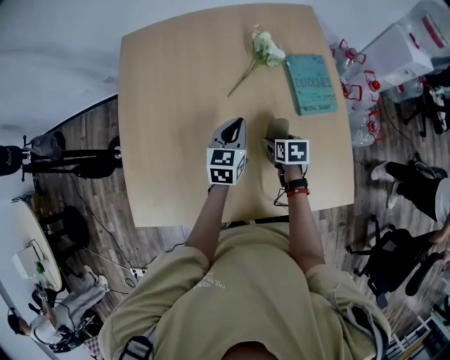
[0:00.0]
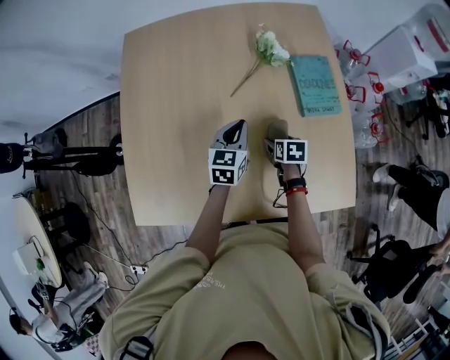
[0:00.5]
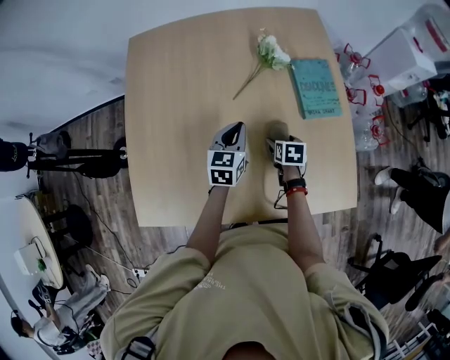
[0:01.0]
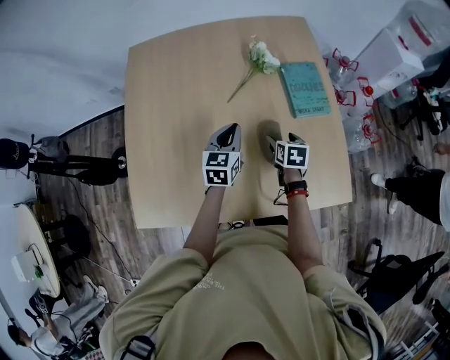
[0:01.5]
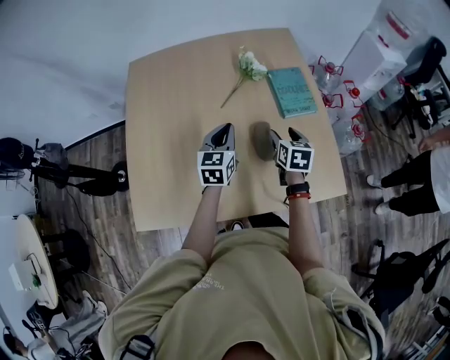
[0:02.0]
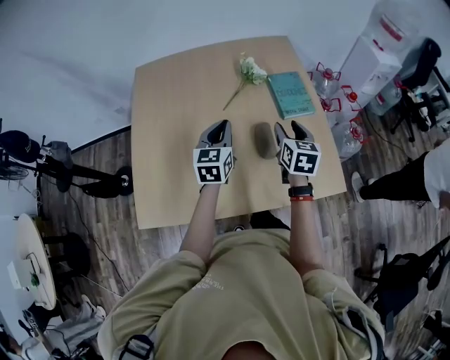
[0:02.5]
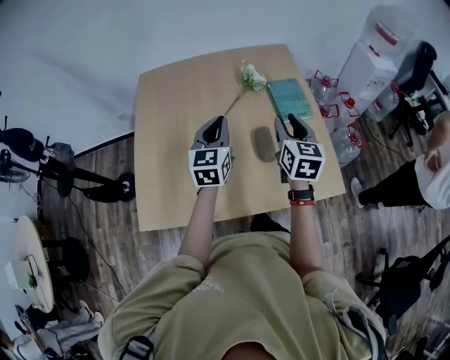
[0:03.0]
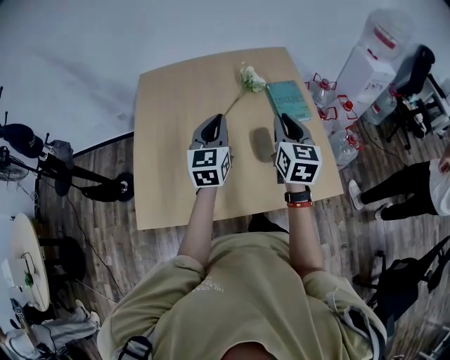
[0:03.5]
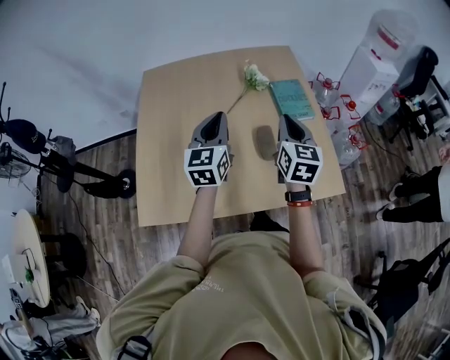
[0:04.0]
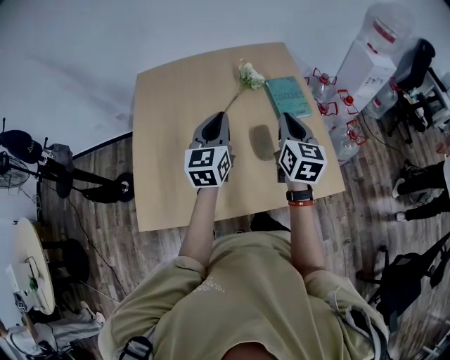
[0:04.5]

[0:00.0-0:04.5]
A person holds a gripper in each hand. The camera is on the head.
0.0 to 2.0 s: The right gripper shifts approximately 15 cm upward and backward, and turns by some 30 degrees. The left gripper goes roughly 10 cm backward and upward.
2.0 to 4.5 s: Both grippers move upward and backward, roughly 15 cm. The right gripper turns by some 30 degrees, and closes.

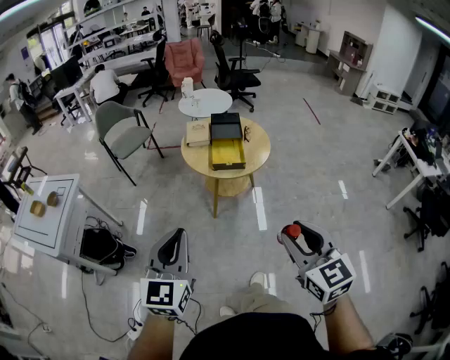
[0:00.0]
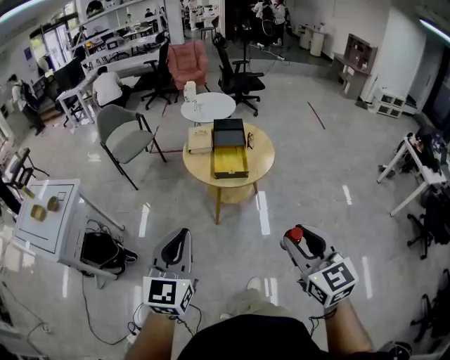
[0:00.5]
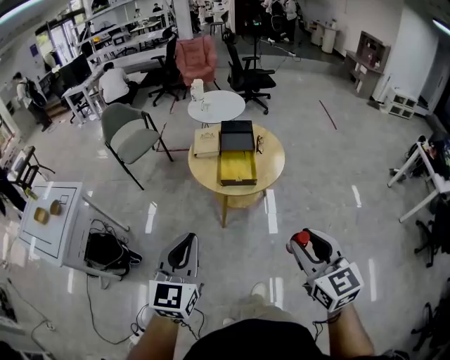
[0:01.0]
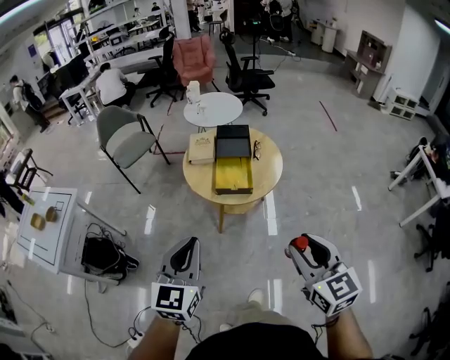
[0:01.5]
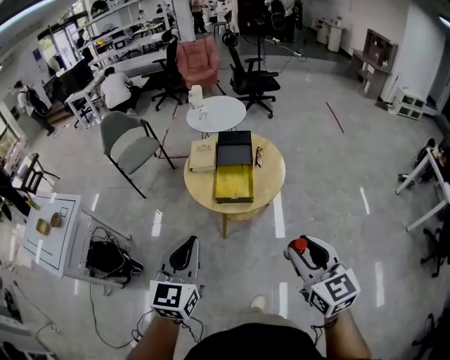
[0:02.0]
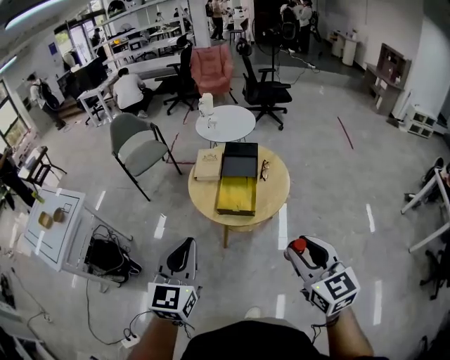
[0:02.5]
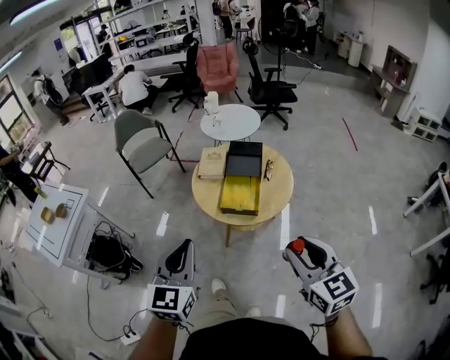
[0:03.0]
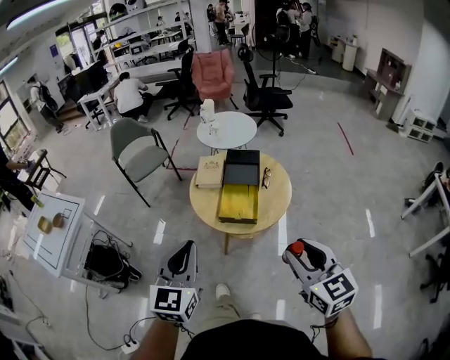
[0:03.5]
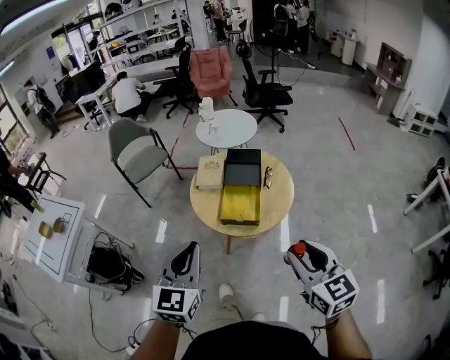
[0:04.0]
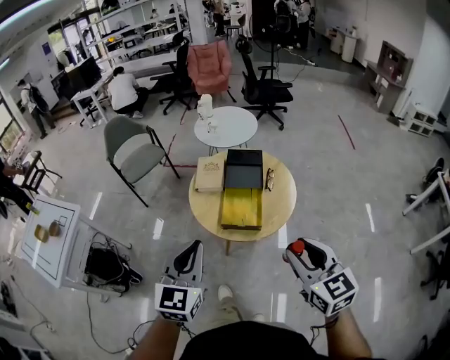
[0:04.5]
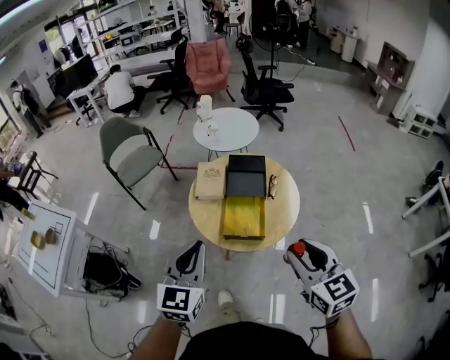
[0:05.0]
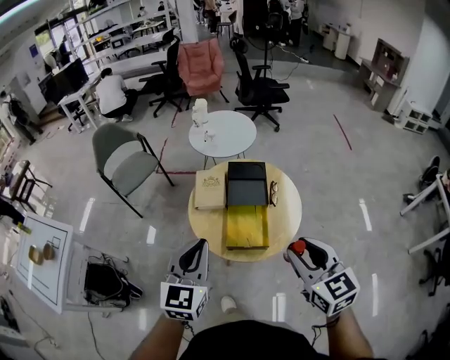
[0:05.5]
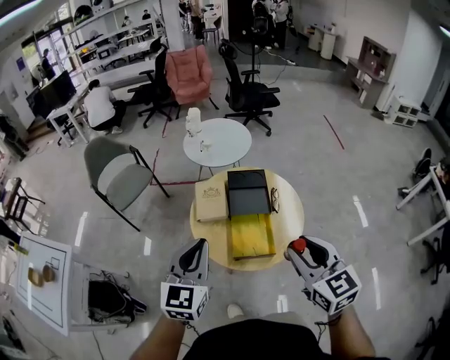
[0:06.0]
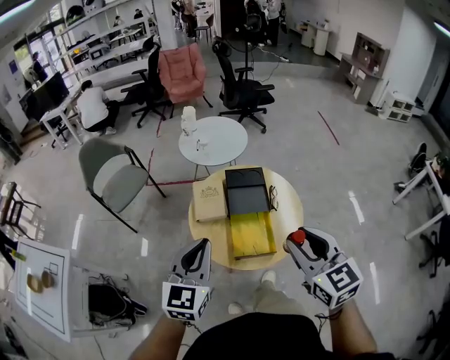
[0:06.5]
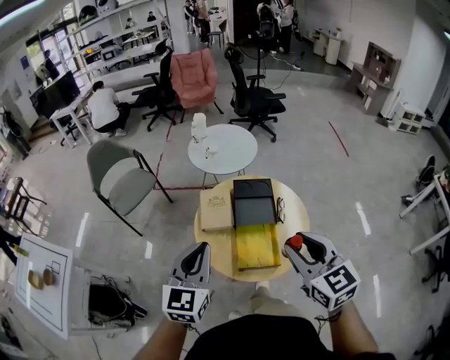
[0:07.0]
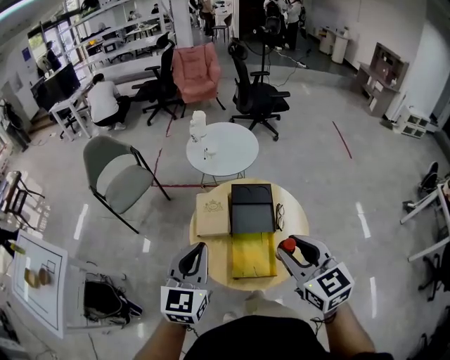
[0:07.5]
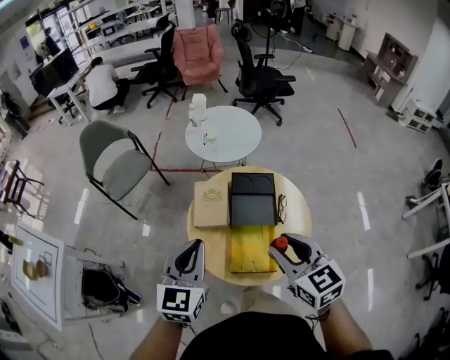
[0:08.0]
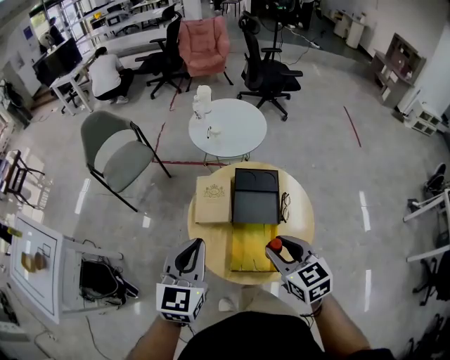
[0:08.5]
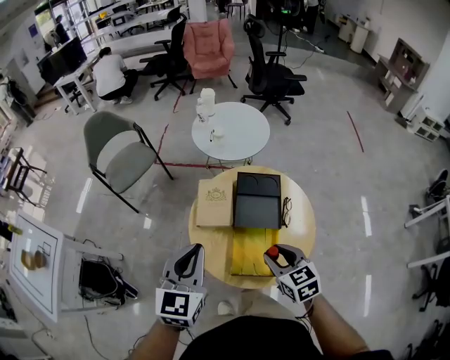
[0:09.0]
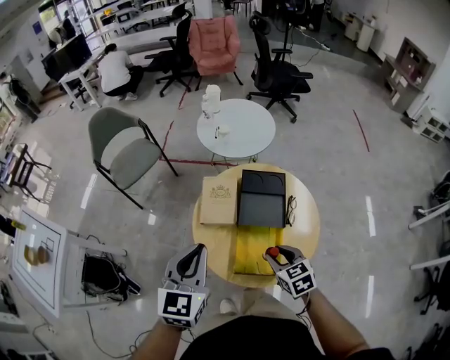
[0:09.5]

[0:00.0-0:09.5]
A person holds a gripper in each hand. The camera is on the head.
0.0 to 2.0 s: Both grippers travel together forward and to the right, about 25 cm.
2.0 to 4.0 s: The grippers both shift forward by some 10 cm.
4.0 to 5.5 s: The grippers both shift forward by about 20 cm.
5.5 to 7.5 s: The two grippers go roughly 15 cm forward.
7.5 to 9.5 s: The left gripper is displaced downward by approximately 5 cm. The right gripper goes some 25 cm downward, and changes its angle by about 20 degrees.

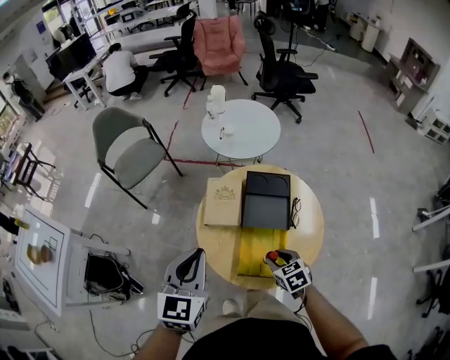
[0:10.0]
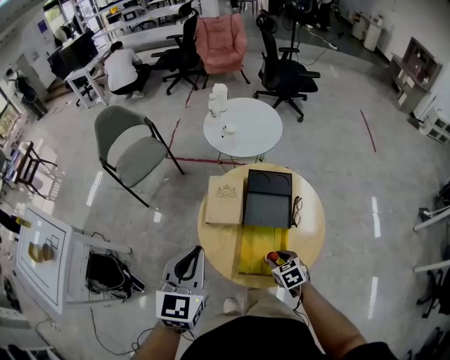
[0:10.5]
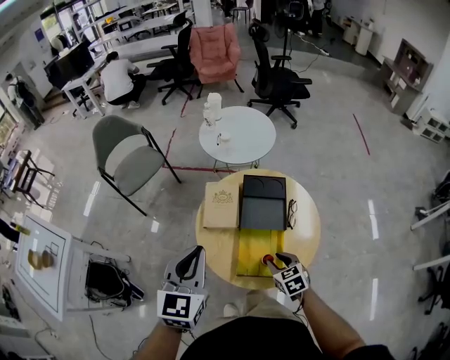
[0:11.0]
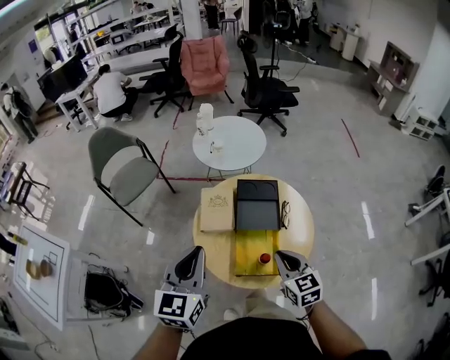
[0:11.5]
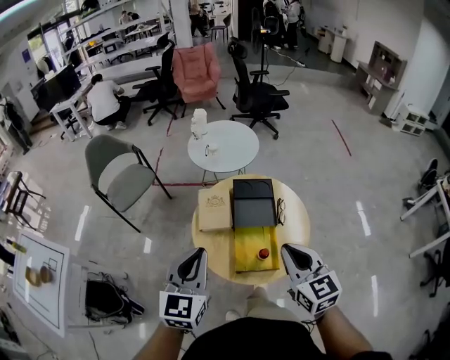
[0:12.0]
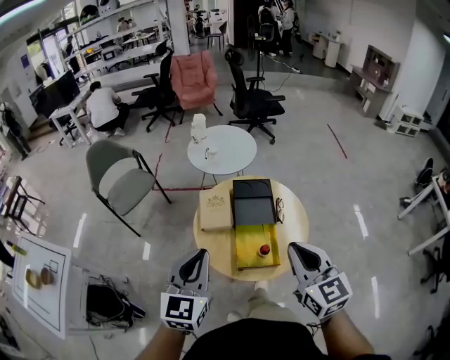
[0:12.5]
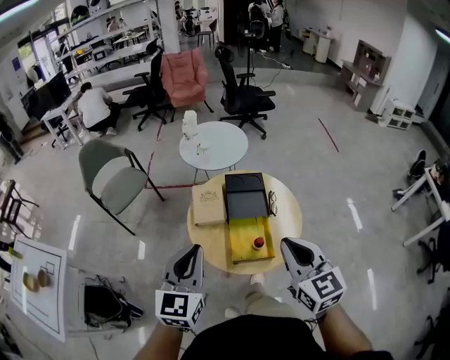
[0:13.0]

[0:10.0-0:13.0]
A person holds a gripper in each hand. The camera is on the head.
10.0 to 11.5 s: The right gripper moves upward, some 15 cm, turns by some 30 degrees, and closes up. Meanwhile the left gripper moves some 5 cm.
11.5 to 13.0 s: The right gripper travels upward and backward by approximately 20 cm, while the left gripper travels backward by approximately 10 cm.

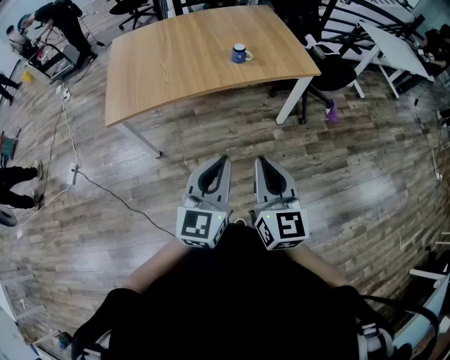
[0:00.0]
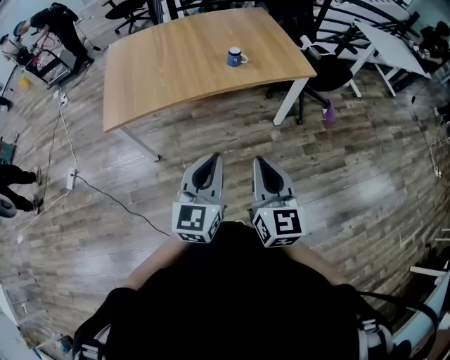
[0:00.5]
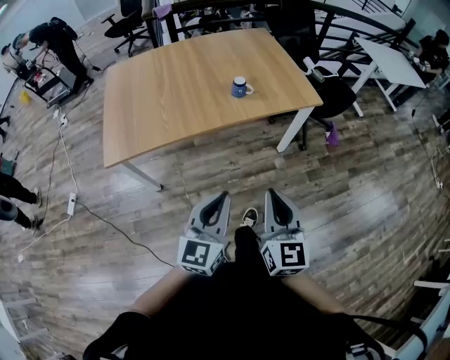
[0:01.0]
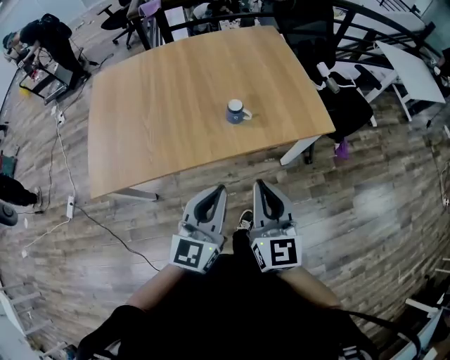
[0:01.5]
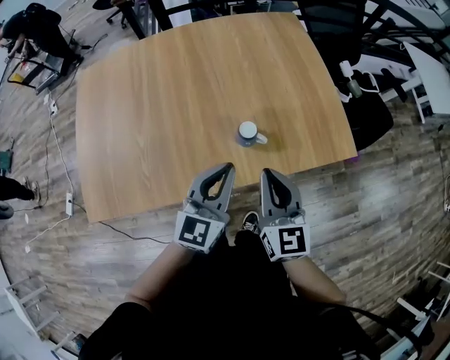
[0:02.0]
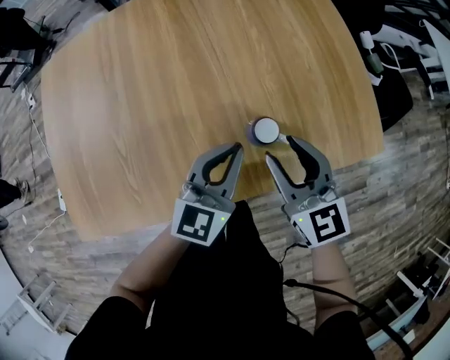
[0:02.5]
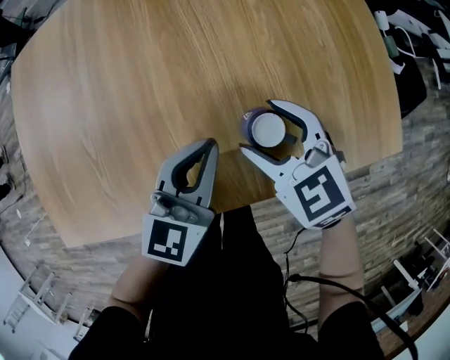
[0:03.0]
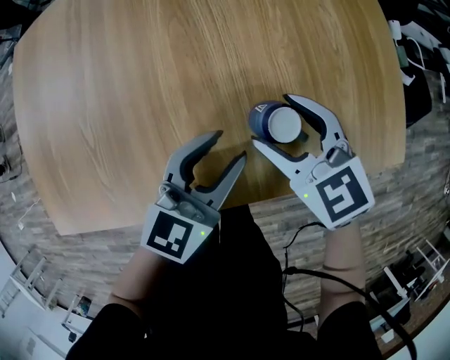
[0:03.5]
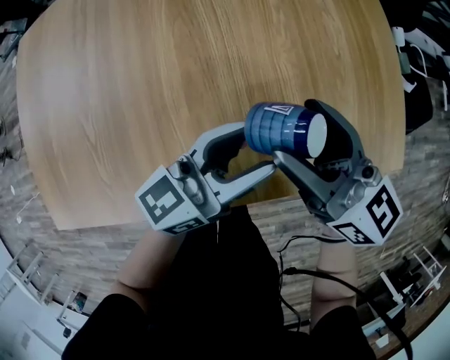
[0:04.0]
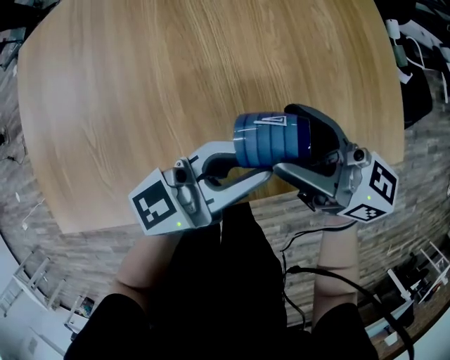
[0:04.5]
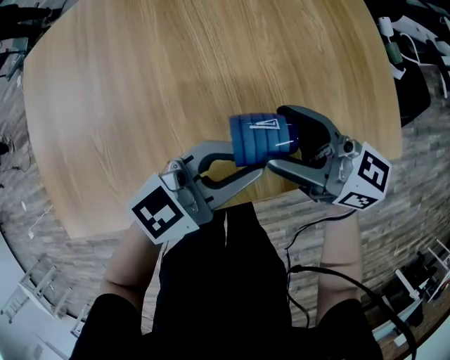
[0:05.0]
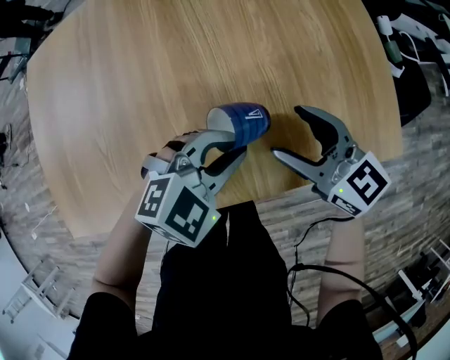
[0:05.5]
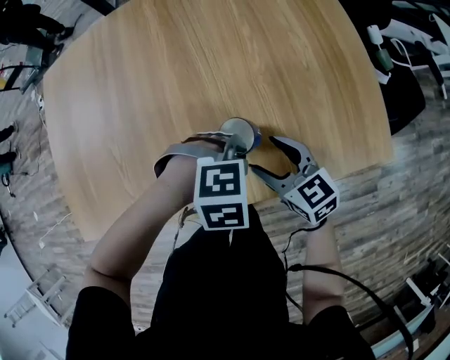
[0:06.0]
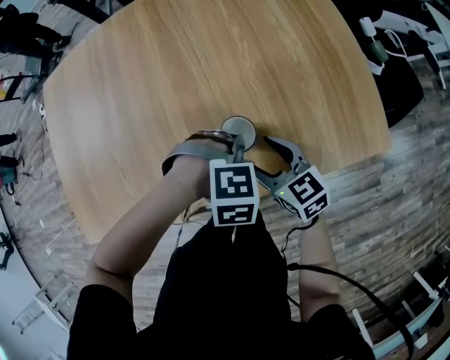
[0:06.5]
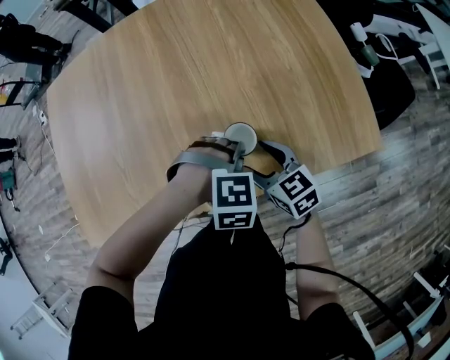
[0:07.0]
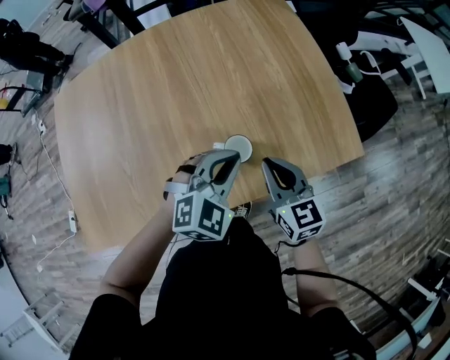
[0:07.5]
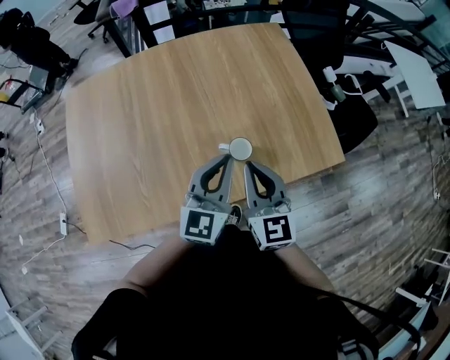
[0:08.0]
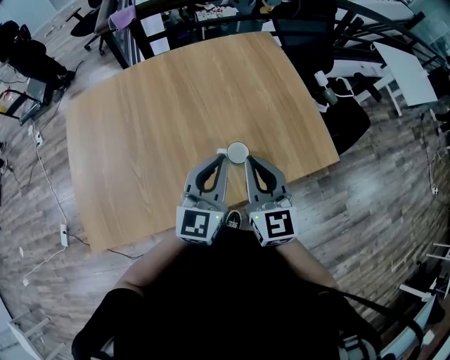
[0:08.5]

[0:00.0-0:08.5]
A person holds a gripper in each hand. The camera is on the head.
0.0 to 2.0 s: The two grippers travel together, forward, approximately 60 cm.
2.0 to 4.0 s: The left gripper heads downward and forward, covering approximately 20 cm, turns by approximately 40 degrees, and opens its fingers. Meanwhile the right gripper shifts about 20 cm forward and downward, rotates some 30 degrees, and opens its fingers.
4.0 to 6.5 s: The left gripper goes roughly 5 cm downward, angles its fingers downward, by about 80 degrees, and closes, while the right gripper shifts about 10 cm downward, and swivels some 20 degrees.
6.5 to 8.5 s: Both grippers move upward, approximately 30 cm. The right gripper swivels about 40 degrees, and closes. Meanwhile the left gripper points its fingers about 80 degrees further upward.

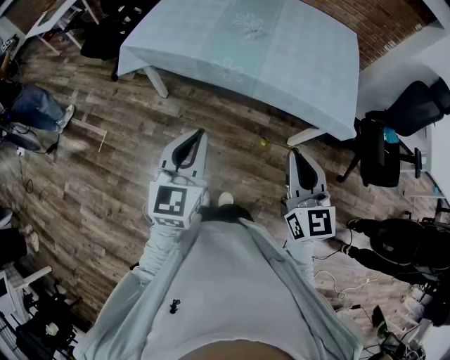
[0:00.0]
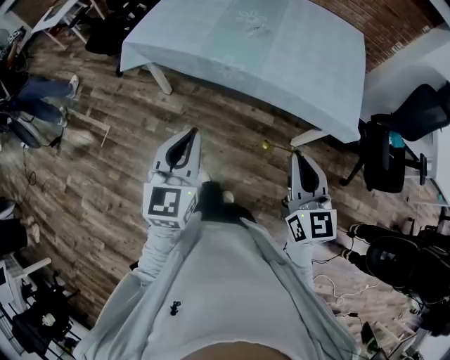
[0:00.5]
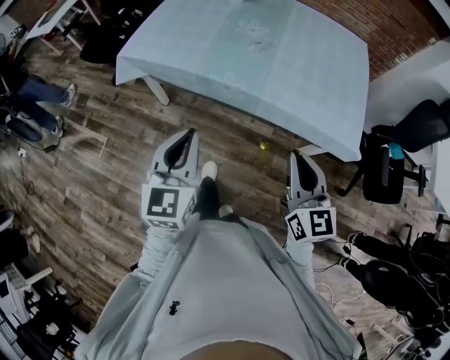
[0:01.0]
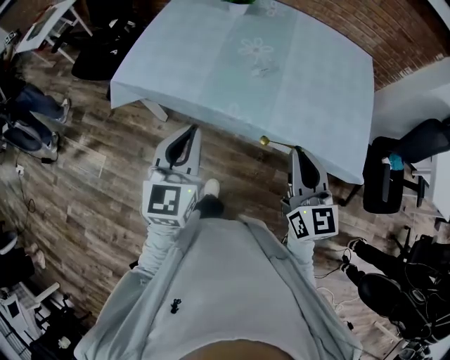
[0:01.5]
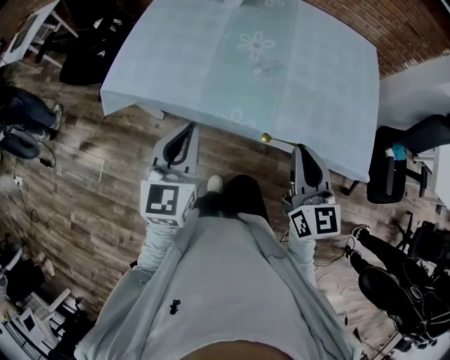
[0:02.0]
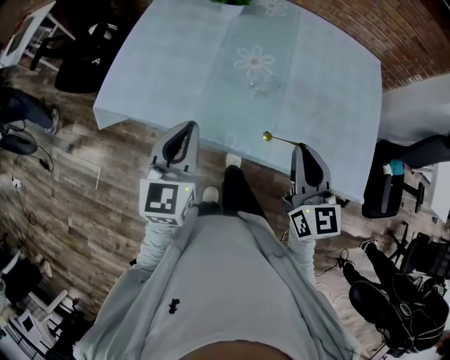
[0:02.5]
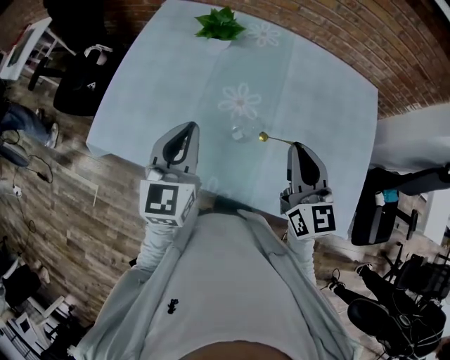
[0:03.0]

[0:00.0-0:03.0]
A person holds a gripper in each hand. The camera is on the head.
0.0 to 1.5 s: The grippers both shift forward by some 25 cm.
1.5 to 3.0 s: The grippers both shift forward by roughly 30 cm.
